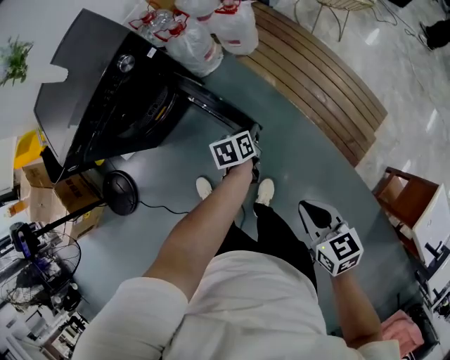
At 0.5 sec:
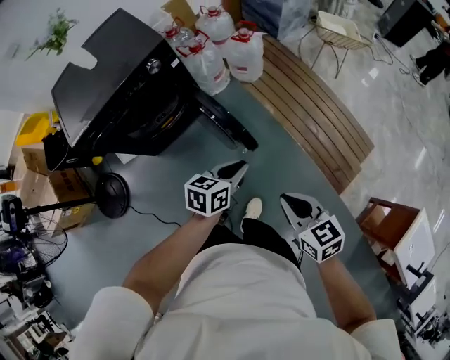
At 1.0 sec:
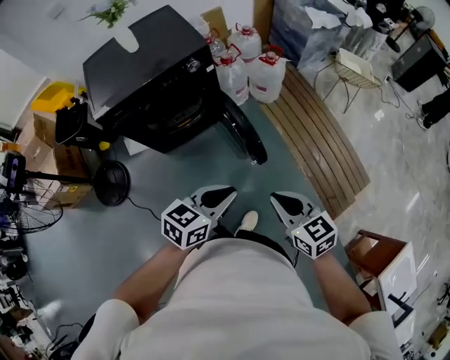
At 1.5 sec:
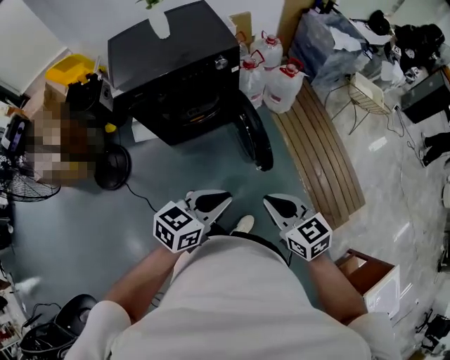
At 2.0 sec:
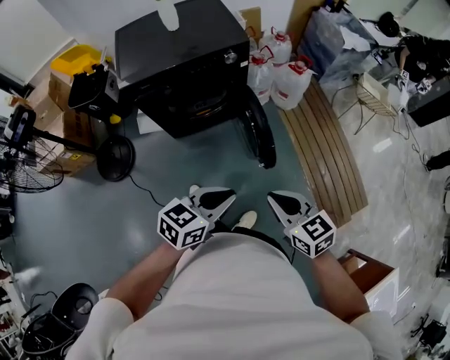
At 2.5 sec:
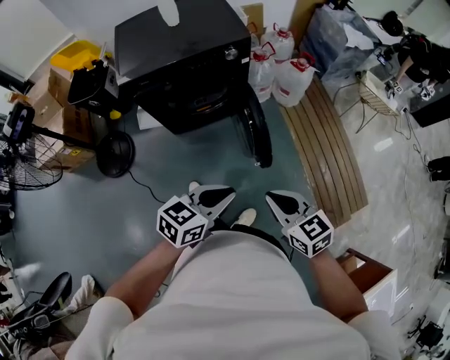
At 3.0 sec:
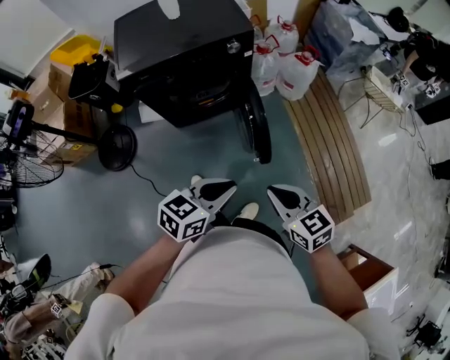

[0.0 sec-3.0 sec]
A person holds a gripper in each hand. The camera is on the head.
0.0 sec to 1.5 sec: The left gripper heads upward, backward and to the left, covering approximately 40 cm, and swivels some 30 degrees, while the right gripper shifts about 20 cm to the left and upward, and turns by roughly 30 degrees.
1.5 sec to 3.0 sec: There are only small adjustments of the grippers.

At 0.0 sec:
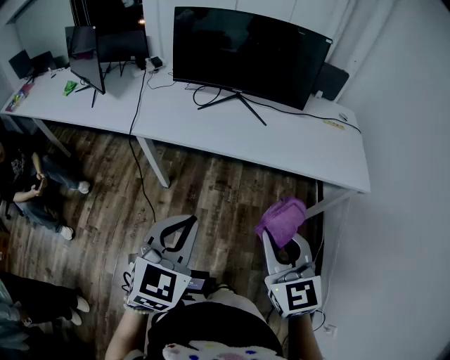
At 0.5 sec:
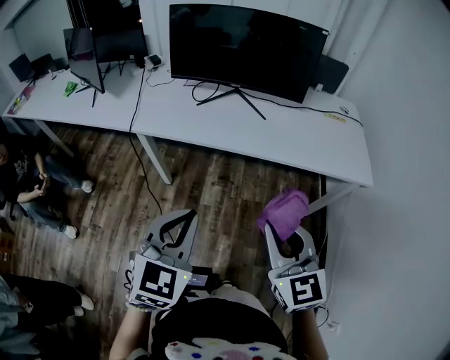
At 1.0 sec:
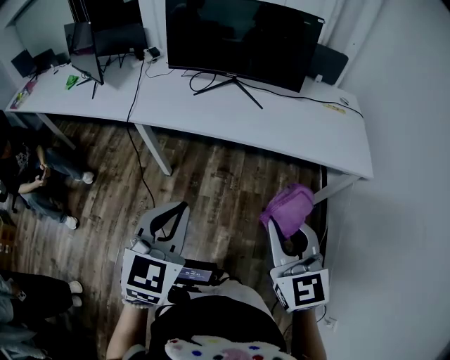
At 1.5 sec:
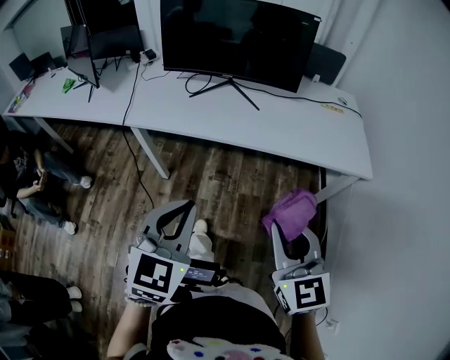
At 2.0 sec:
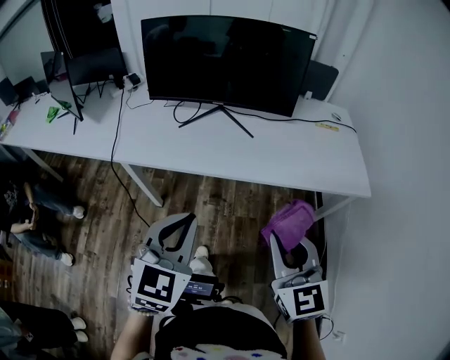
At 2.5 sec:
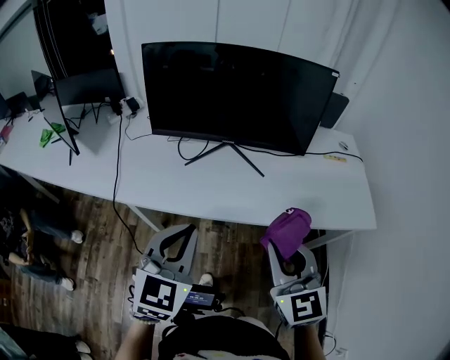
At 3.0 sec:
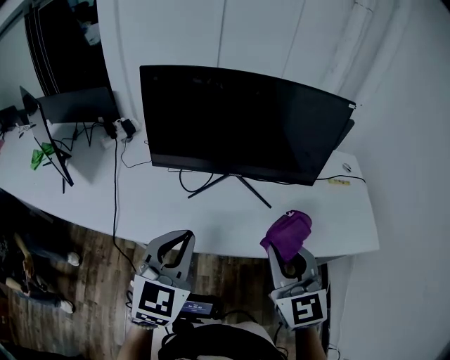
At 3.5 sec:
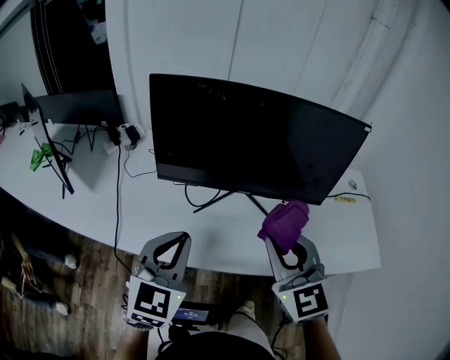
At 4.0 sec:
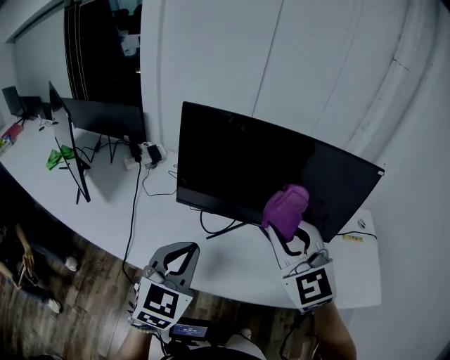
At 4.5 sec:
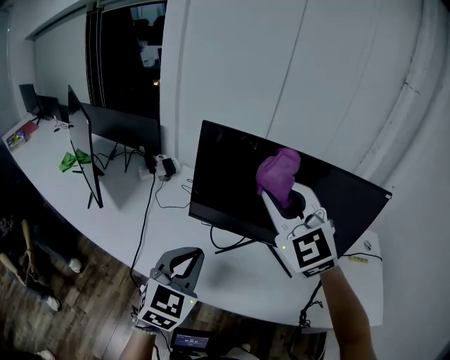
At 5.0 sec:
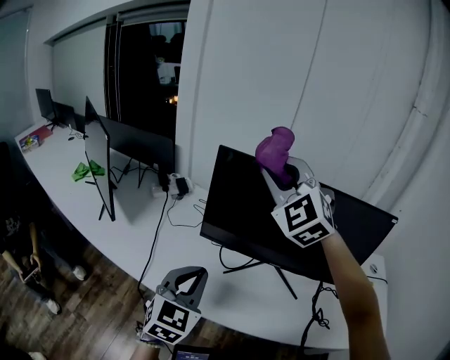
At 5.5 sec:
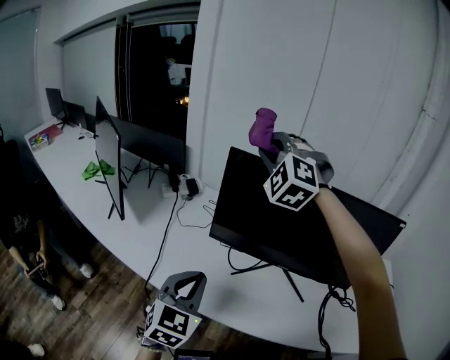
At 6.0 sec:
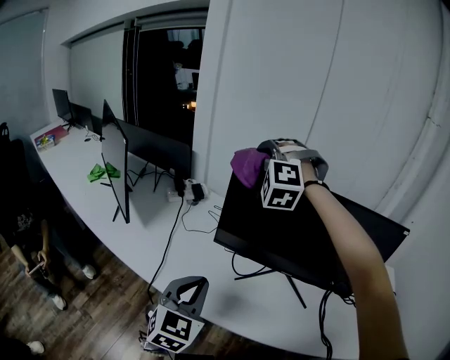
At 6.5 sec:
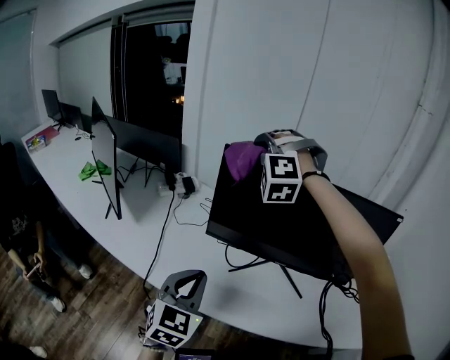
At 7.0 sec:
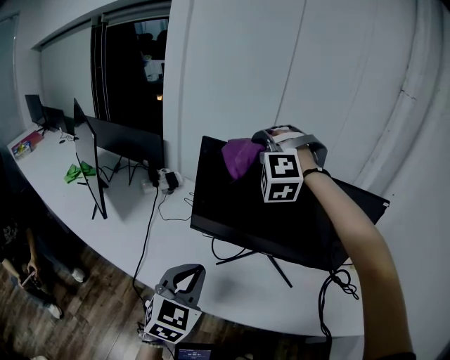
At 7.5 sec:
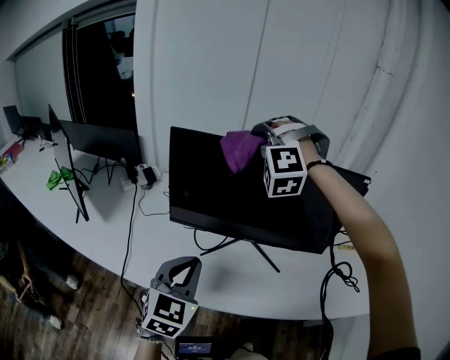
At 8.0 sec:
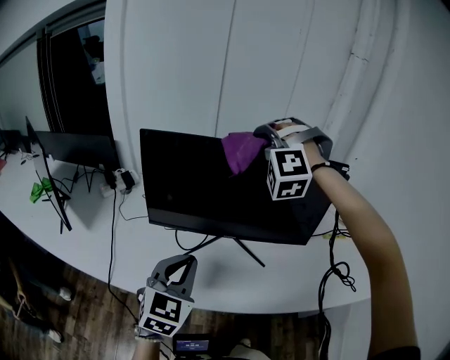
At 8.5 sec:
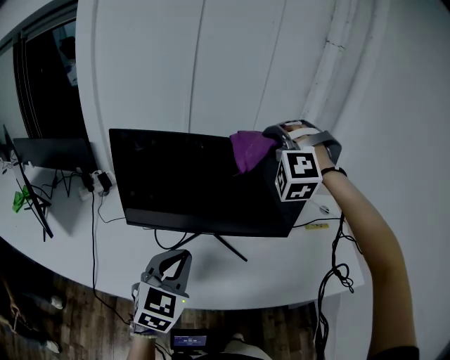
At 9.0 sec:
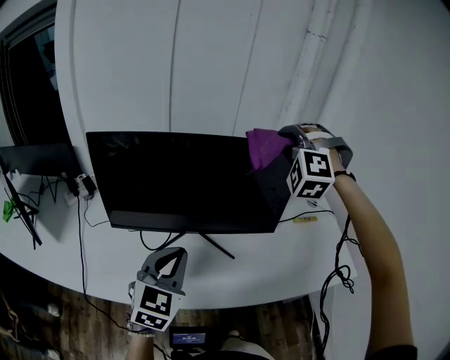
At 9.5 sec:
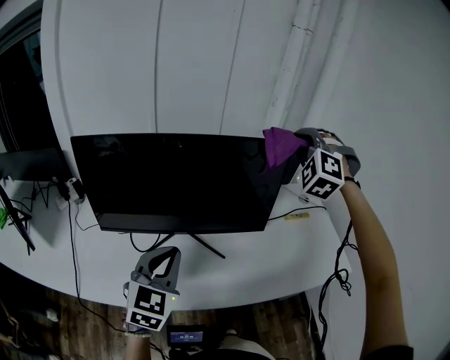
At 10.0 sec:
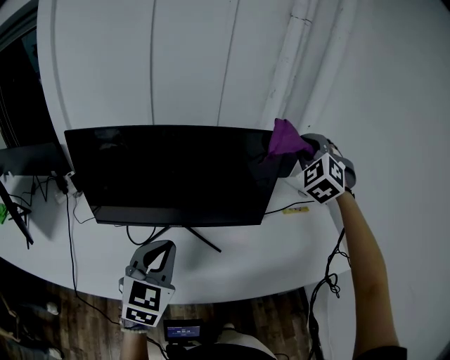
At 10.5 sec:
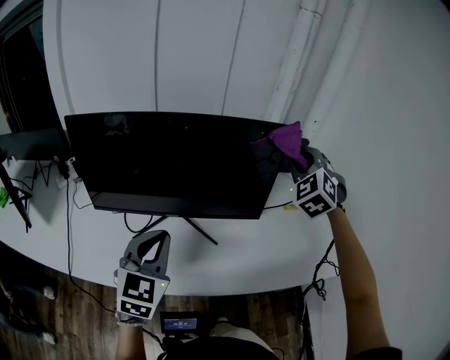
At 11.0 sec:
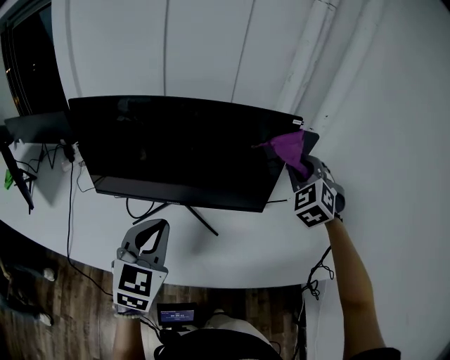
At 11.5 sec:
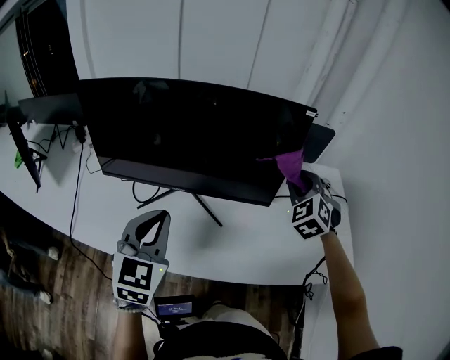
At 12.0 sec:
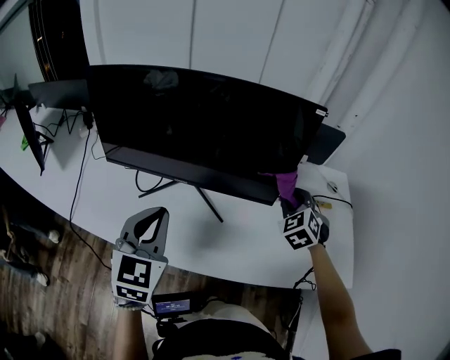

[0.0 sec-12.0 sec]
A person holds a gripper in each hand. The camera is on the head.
0.0 sec to 2.0 sec: The right gripper is displaced forward and to the right by about 10 cm. Meanwhile the left gripper shifts about 10 cm forward.
2.0 sec to 4.0 sec: The grippers both shift forward and to the left by some 40 cm. The right gripper changes its angle by about 30 degrees.
4.0 sec to 6.0 sec: The right gripper travels forward and to the left by approximately 30 cm, and rotates around the line of its fingers by about 60 degrees, counterclockwise from behind, while the left gripper shifts some 5 cm to the left.
6.0 sec to 8.0 sec: The right gripper shifts approximately 25 cm to the right. The left gripper shifts approximately 15 cm to the right.
8.0 sec to 10.0 sec: The right gripper heads to the right, covering roughly 35 cm, and twists about 40 degrees clockwise, seen from behind. Meanwhile the left gripper moves to the right and forward, some 10 cm.
10.0 sec to 12.0 sec: The right gripper shifts about 25 cm downward, and swivels roughly 30 degrees.

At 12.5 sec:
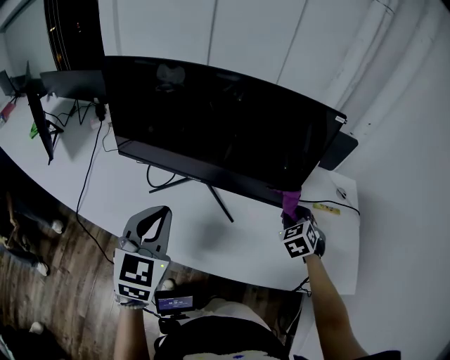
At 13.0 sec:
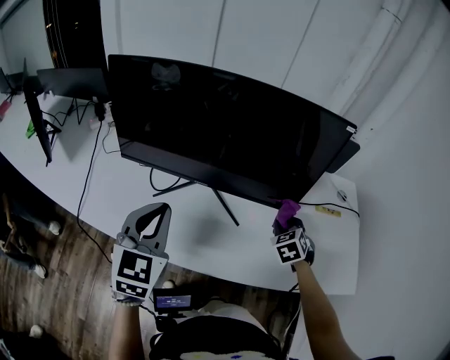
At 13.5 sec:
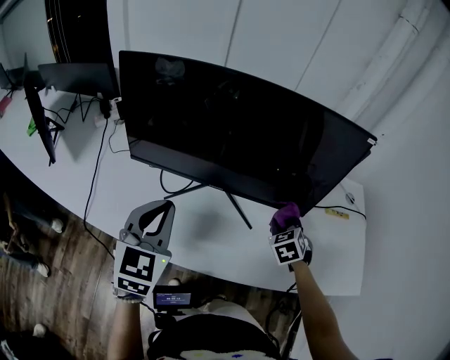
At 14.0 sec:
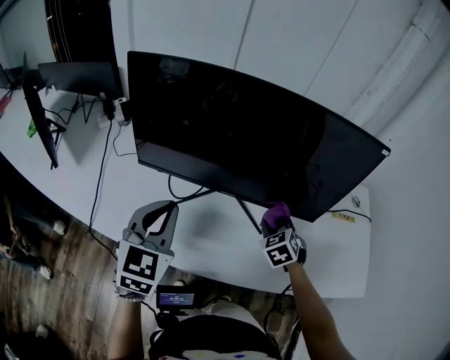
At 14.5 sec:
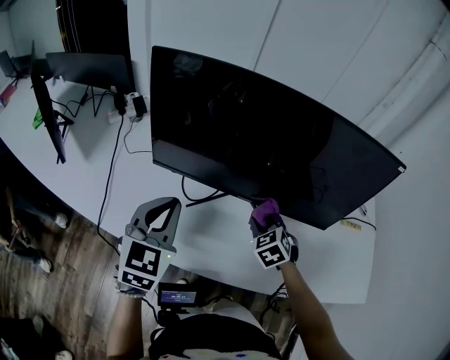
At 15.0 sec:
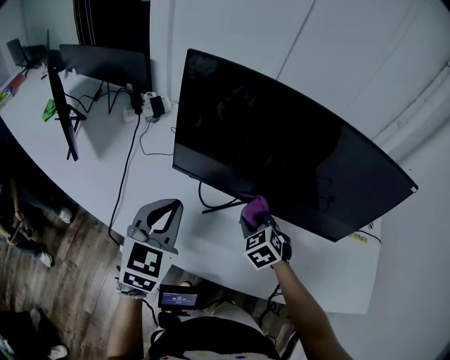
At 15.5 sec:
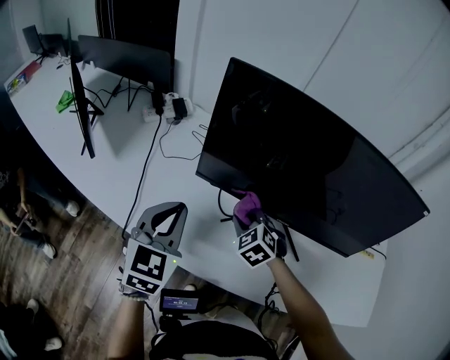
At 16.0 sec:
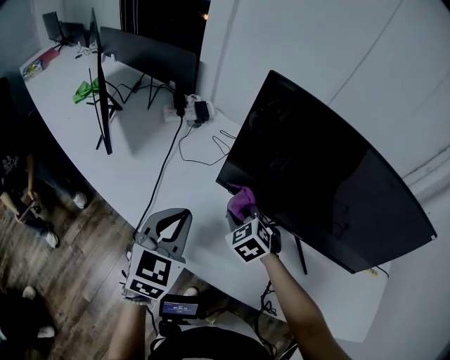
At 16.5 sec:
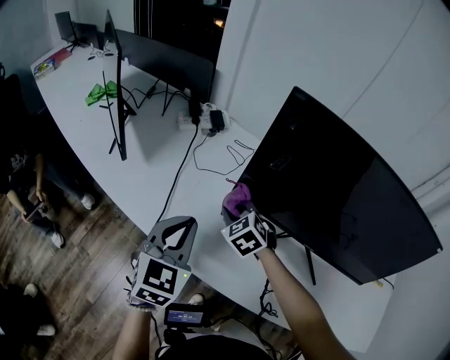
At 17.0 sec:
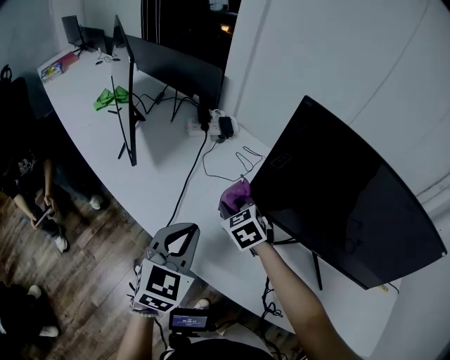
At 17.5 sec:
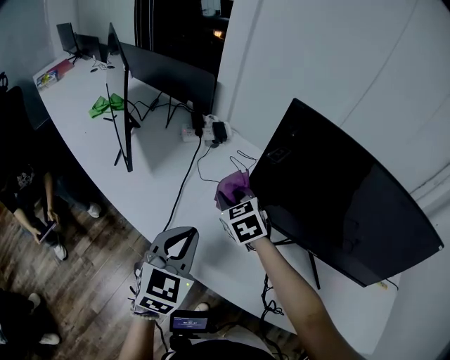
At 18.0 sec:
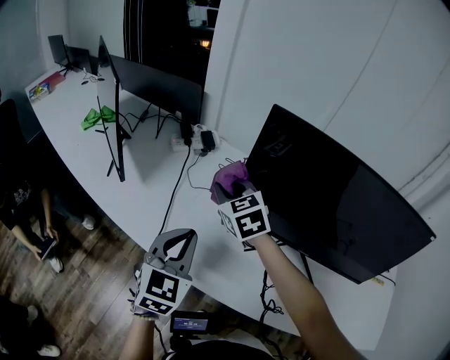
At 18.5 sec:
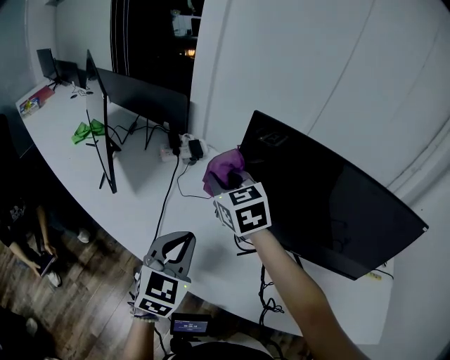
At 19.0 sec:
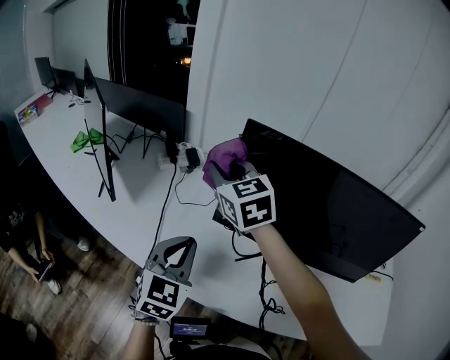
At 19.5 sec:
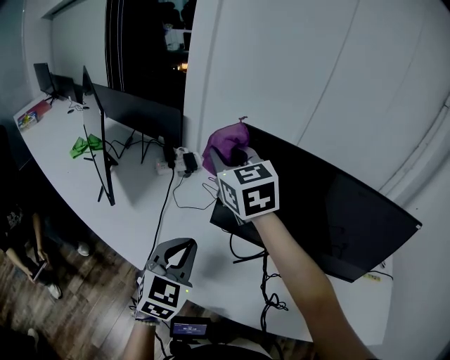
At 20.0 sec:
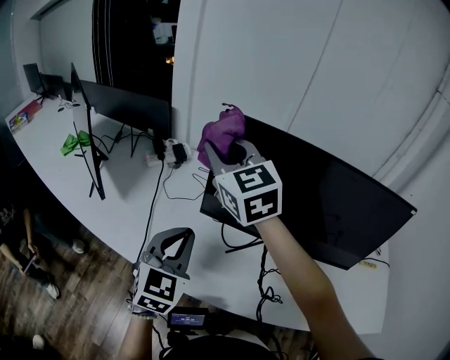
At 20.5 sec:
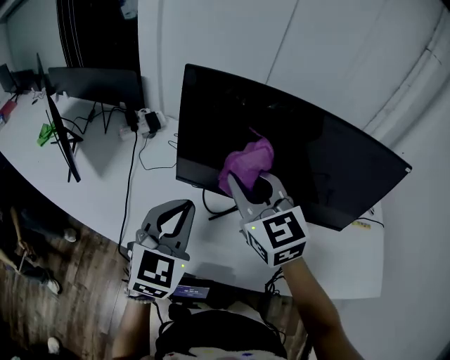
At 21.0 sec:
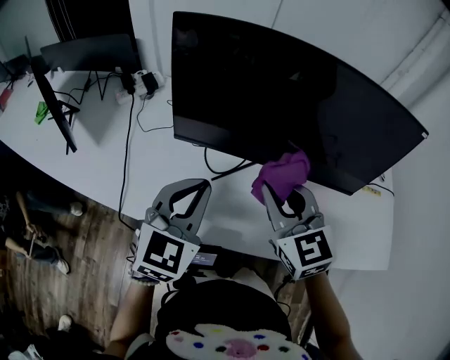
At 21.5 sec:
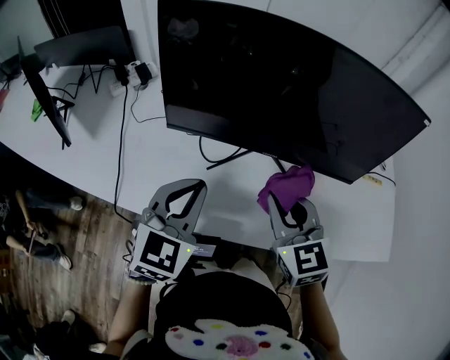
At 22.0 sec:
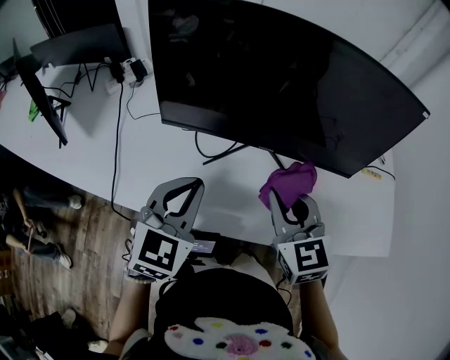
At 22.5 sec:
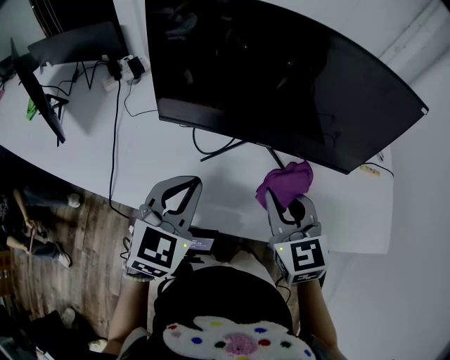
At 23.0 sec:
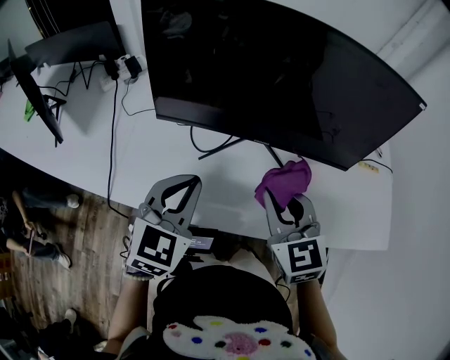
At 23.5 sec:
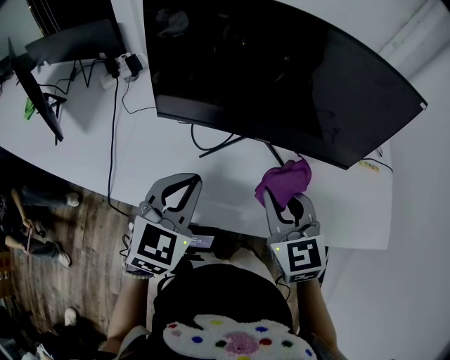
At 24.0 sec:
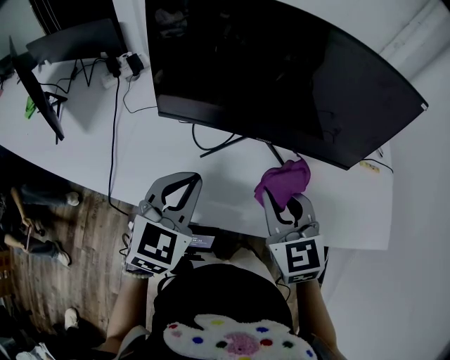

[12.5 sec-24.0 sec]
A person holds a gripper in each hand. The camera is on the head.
12.5 sec to 14.5 sec: The right gripper travels to the left by some 30 cm. The left gripper shifts approximately 20 cm to the left and forward.
14.5 sec to 16.5 sec: The left gripper travels to the left by some 20 cm, while the right gripper shifts about 35 cm to the left, and swivels about 30 degrees.
16.5 sec to 18.5 sec: The right gripper moves upward, some 20 cm, and swivels roughly 30 degrees.
18.5 sec to 20.0 sec: The right gripper goes approximately 15 cm upward.
20.0 sec to 22.0 sec: The left gripper goes approximately 15 cm to the right and downward. The right gripper travels to the right, downward and backward by some 40 cm, and turns by about 30 degrees.
22.0 sec to 24.0 sec: The grippers move only a little.
